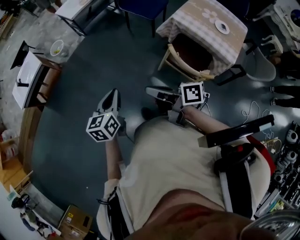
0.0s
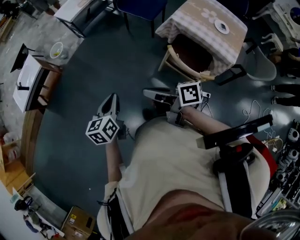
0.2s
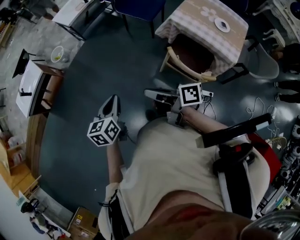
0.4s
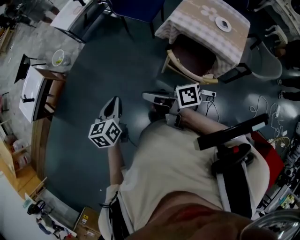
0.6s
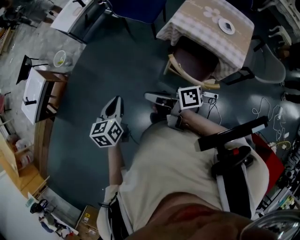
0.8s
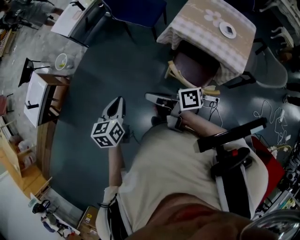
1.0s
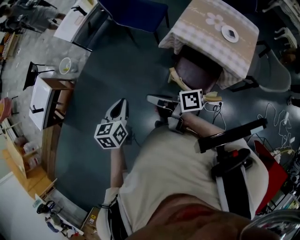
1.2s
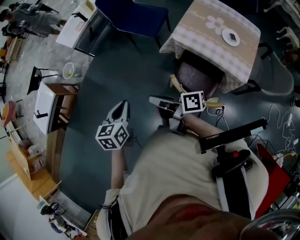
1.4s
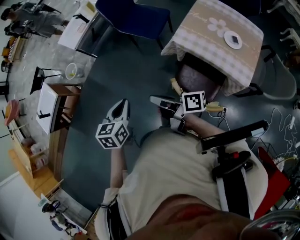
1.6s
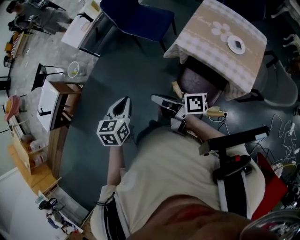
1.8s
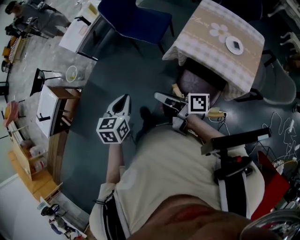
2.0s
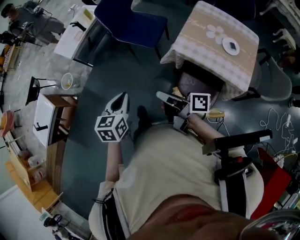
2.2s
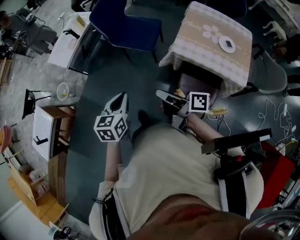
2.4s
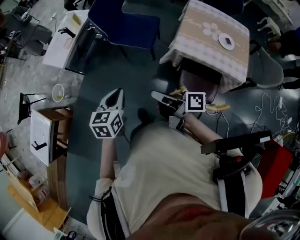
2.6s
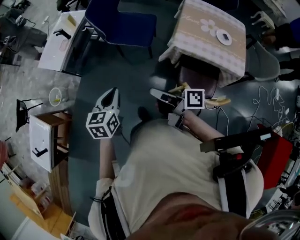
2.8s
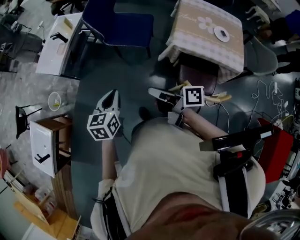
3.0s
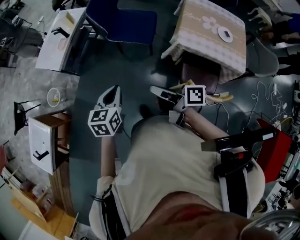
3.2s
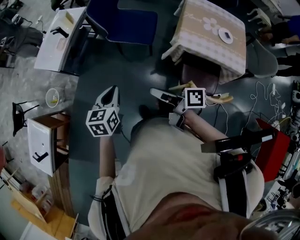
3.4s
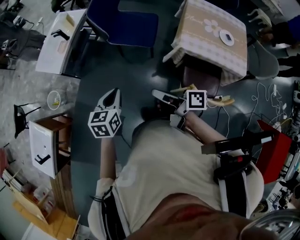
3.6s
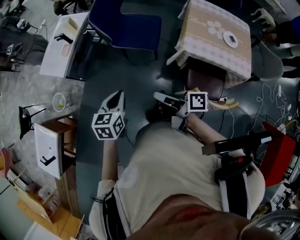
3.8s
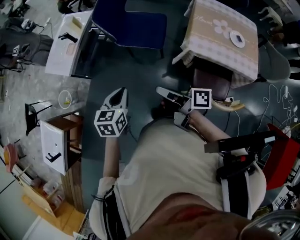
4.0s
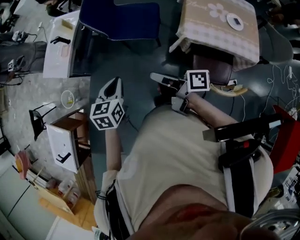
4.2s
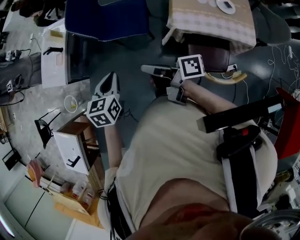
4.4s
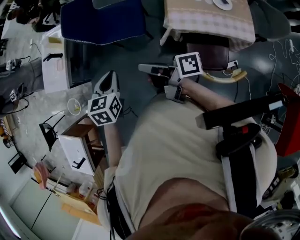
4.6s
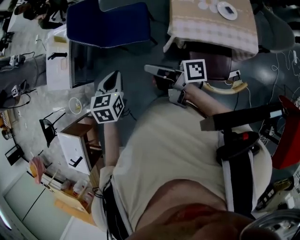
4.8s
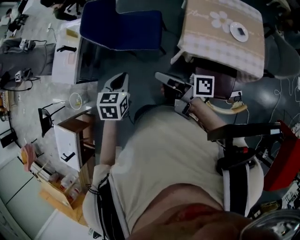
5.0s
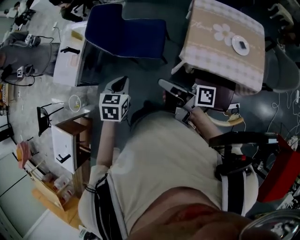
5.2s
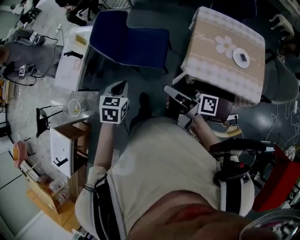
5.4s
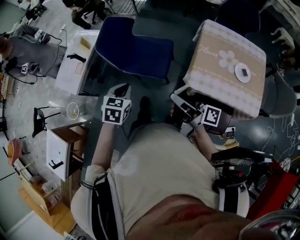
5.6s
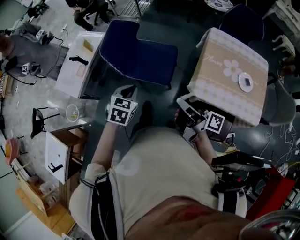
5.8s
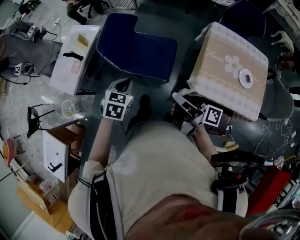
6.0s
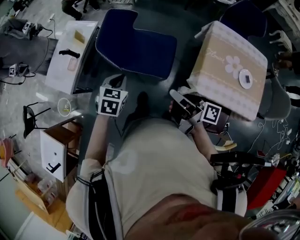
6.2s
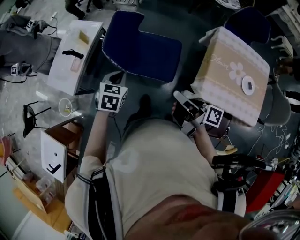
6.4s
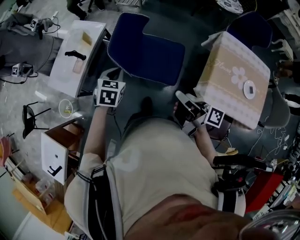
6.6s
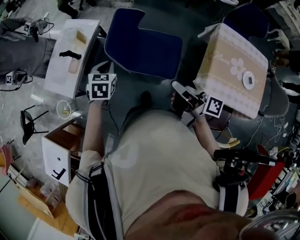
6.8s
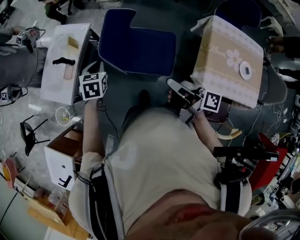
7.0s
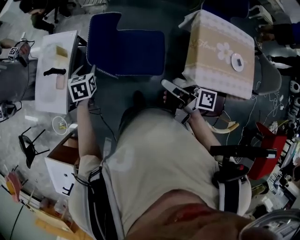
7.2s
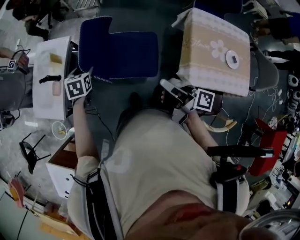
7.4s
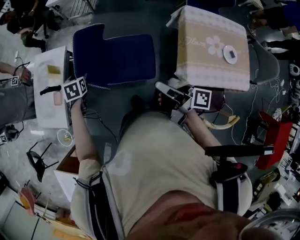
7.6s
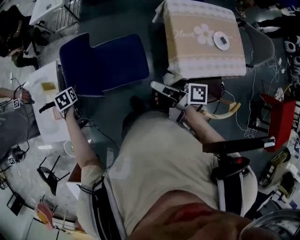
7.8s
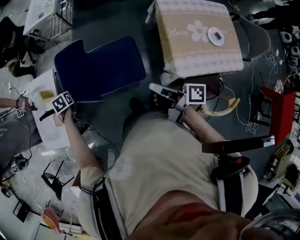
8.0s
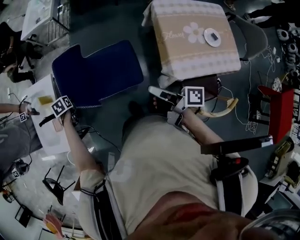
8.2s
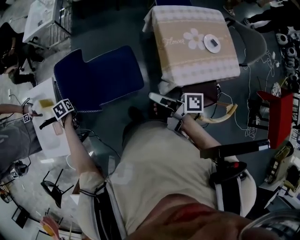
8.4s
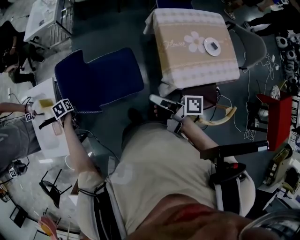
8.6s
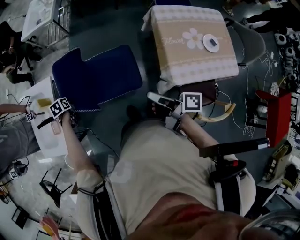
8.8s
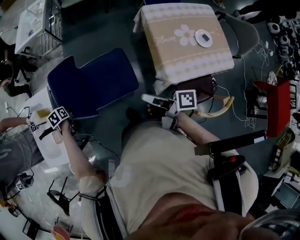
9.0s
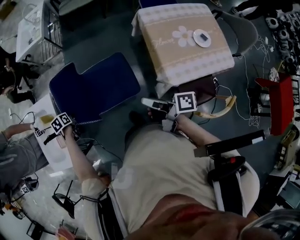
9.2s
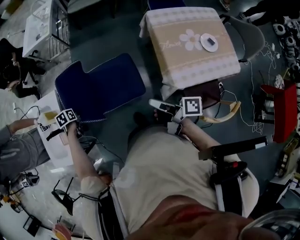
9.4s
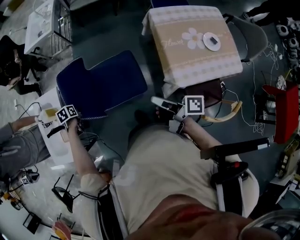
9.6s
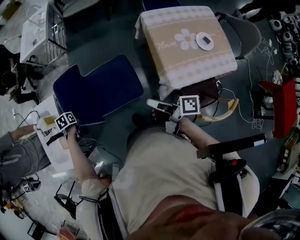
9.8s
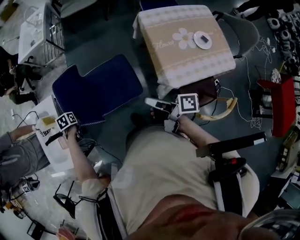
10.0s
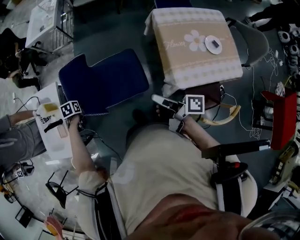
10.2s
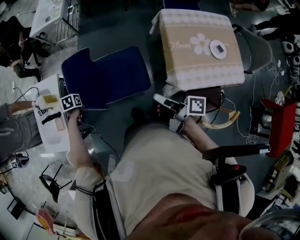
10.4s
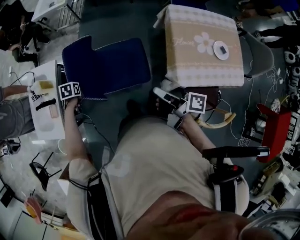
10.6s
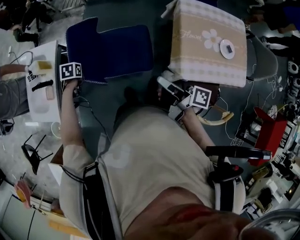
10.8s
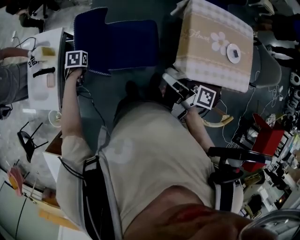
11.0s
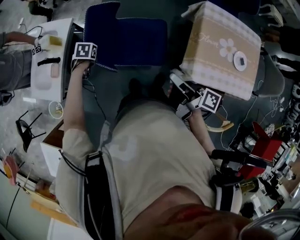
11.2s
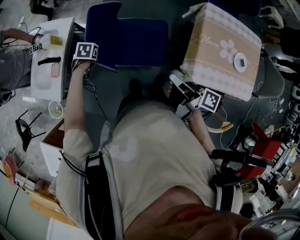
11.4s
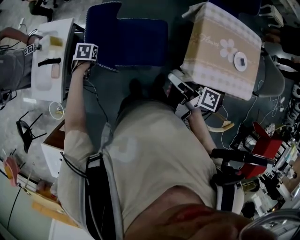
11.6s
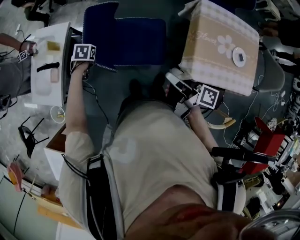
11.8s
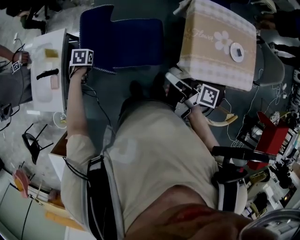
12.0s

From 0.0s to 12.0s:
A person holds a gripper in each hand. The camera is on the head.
From 0.0s to 1.6s: The left gripper moves about 25 cm.
From 1.6s to 3.0s: The left gripper changes place by approximately 25 cm.
From 3.0s to 4.4s: The left gripper moves some 15 cm.
From 4.4s to 6.0s: The left gripper moves roughly 20 cm.
From 6.0s to 7.6s: The left gripper ends up some 30 cm from where it was, and opens up.
From 7.6s to 9.0s: The left gripper heads downward, covering approximately 10 cm.

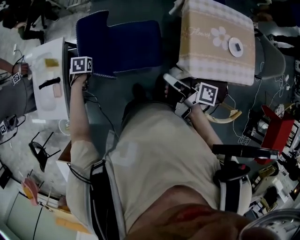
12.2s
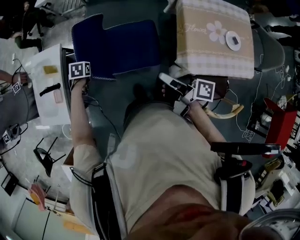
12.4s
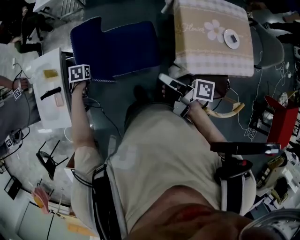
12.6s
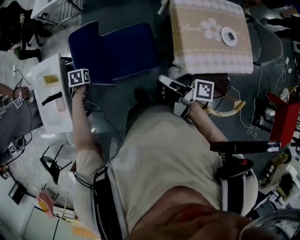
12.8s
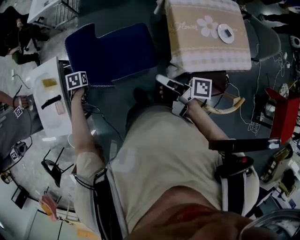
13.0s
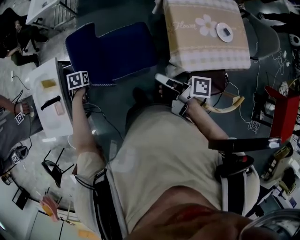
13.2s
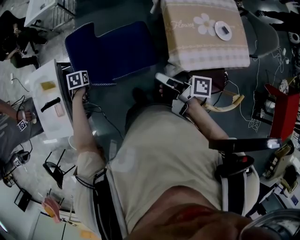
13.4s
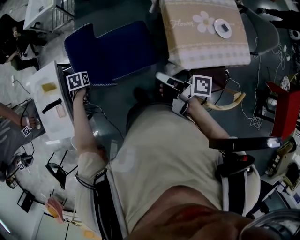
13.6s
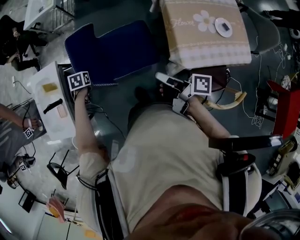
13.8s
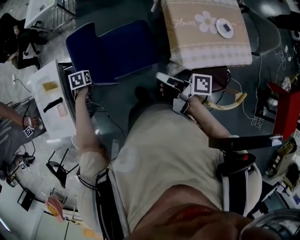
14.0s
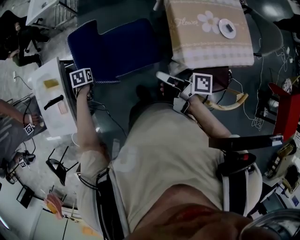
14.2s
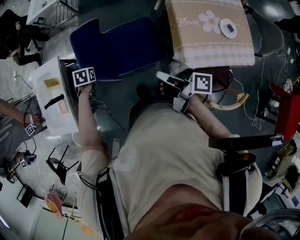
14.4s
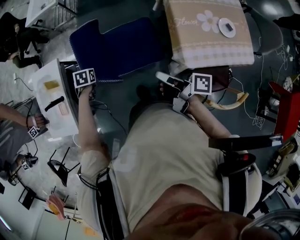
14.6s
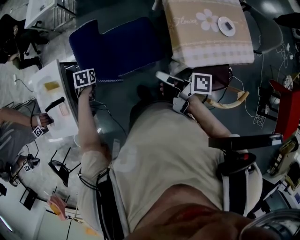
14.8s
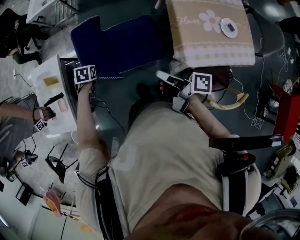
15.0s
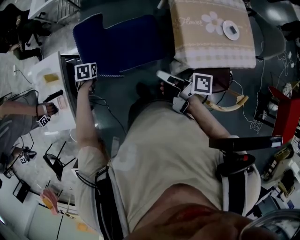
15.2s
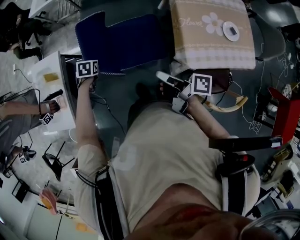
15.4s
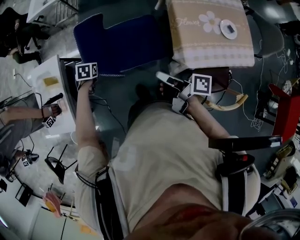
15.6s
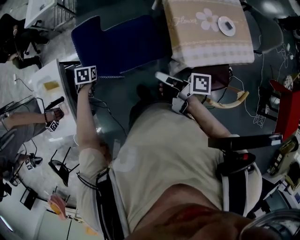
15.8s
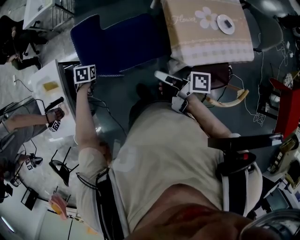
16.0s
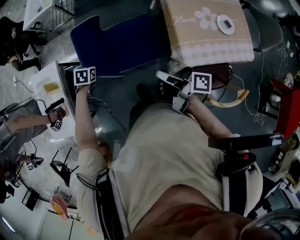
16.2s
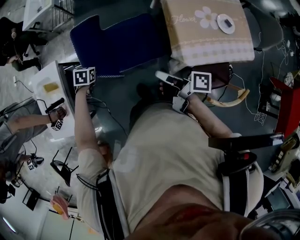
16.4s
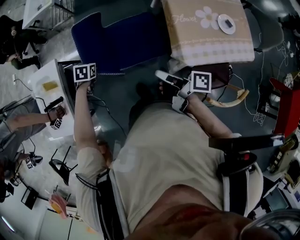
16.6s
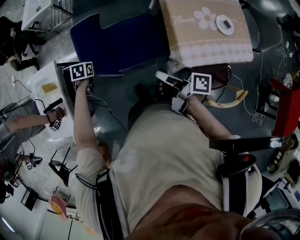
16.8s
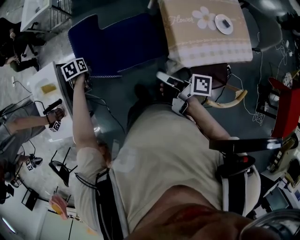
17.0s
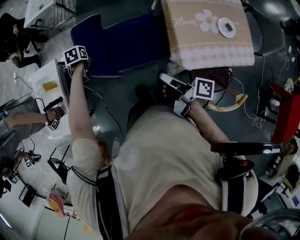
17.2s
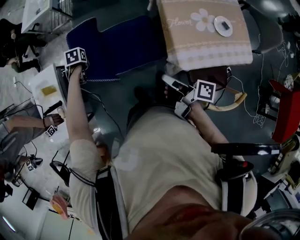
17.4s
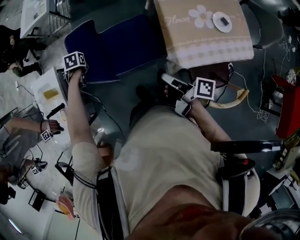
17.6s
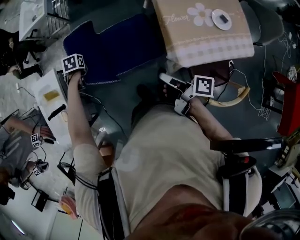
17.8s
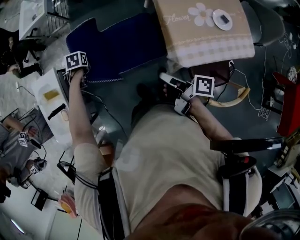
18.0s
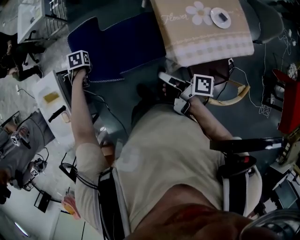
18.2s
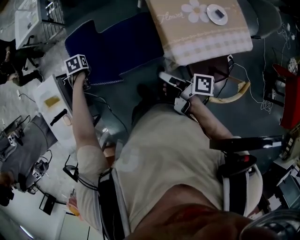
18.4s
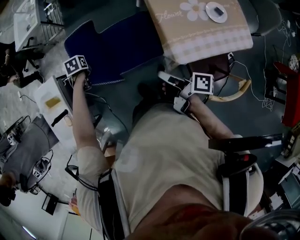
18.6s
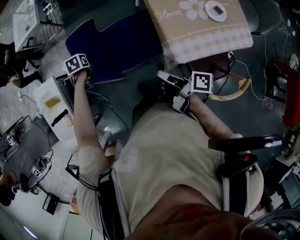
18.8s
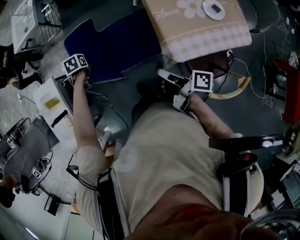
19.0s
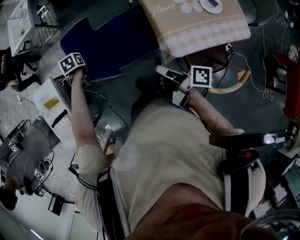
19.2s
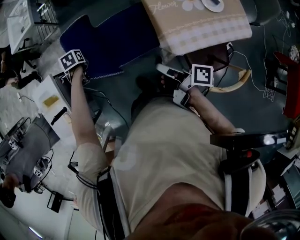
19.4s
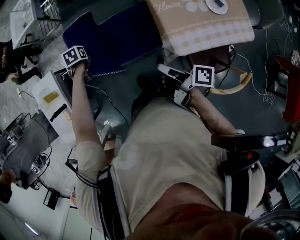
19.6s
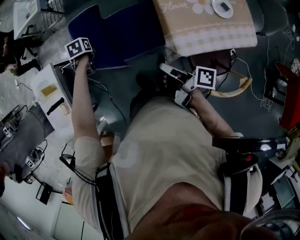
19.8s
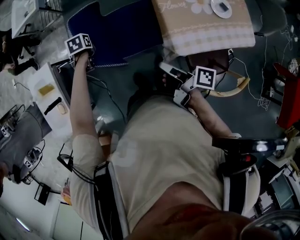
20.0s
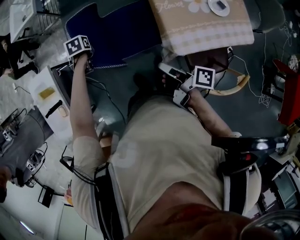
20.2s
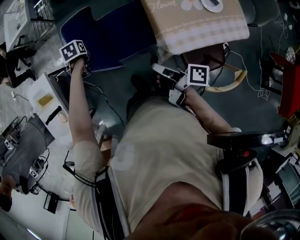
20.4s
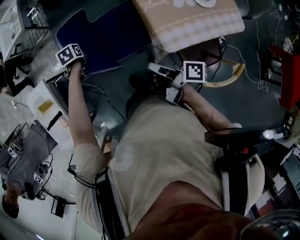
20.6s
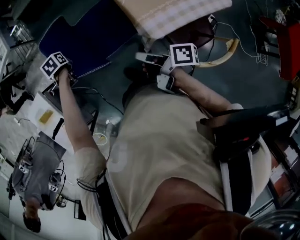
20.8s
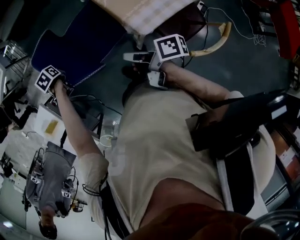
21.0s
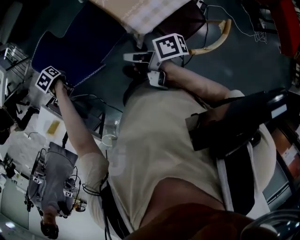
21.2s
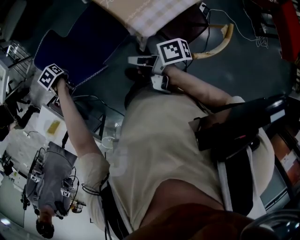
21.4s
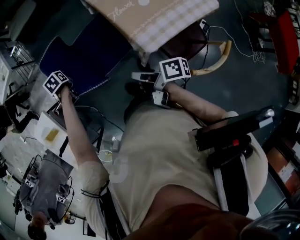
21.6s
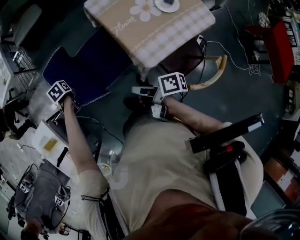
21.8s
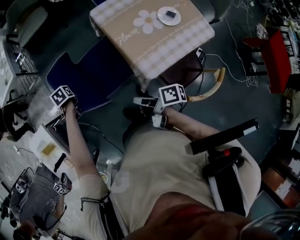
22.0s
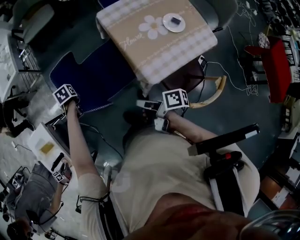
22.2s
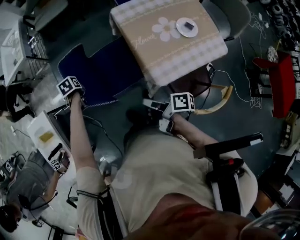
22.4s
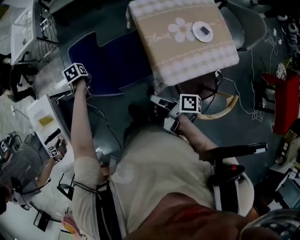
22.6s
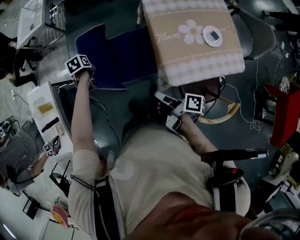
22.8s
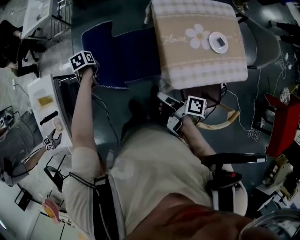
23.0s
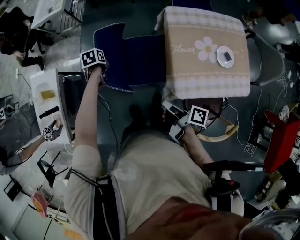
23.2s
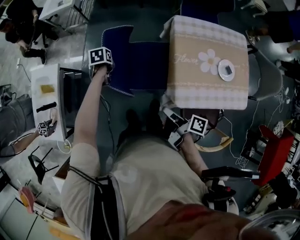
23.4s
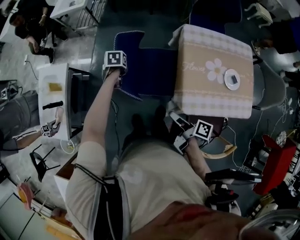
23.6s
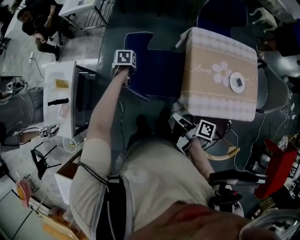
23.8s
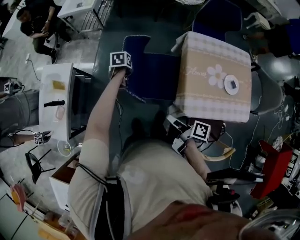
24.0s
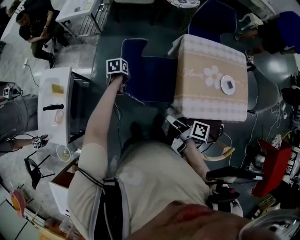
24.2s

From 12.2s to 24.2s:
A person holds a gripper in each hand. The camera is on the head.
From 16.6s to 18.2s: The left gripper ends up roughly 10 cm from where it was.

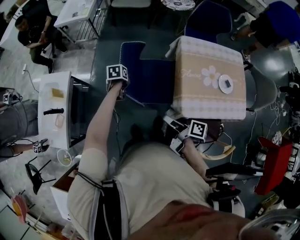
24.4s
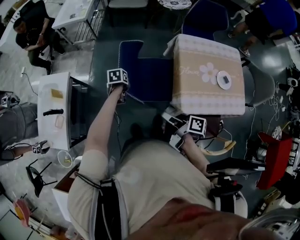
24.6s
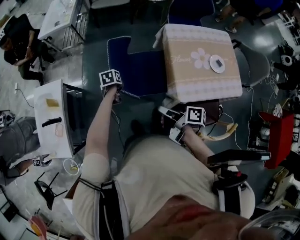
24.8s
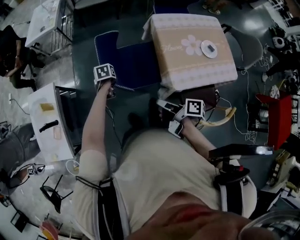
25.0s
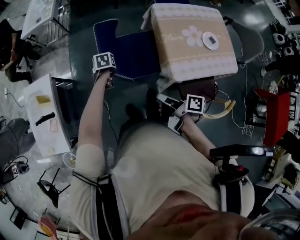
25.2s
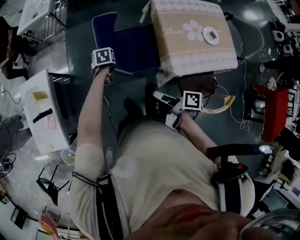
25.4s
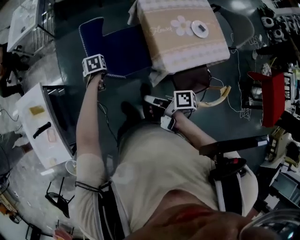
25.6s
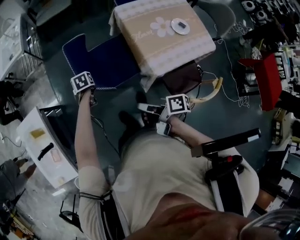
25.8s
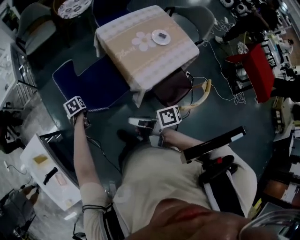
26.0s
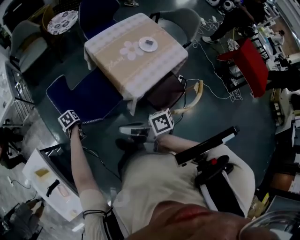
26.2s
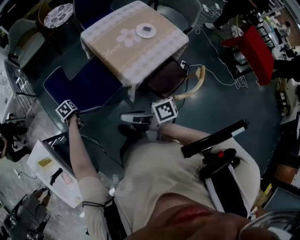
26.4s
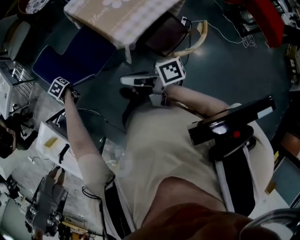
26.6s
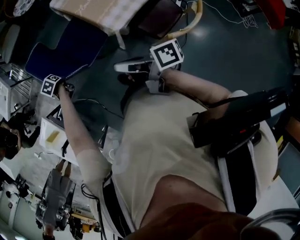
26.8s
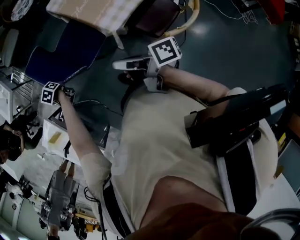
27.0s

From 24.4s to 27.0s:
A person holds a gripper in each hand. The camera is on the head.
From 25.6s to 27.0s: The left gripper changes place by some 5 cm.
